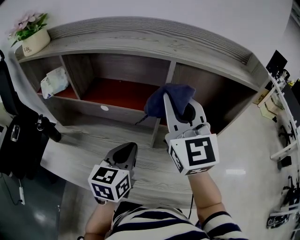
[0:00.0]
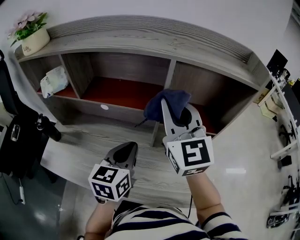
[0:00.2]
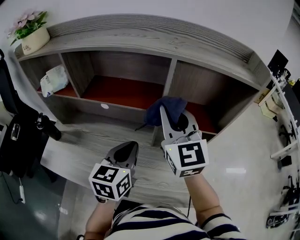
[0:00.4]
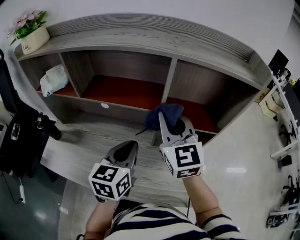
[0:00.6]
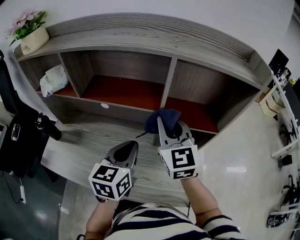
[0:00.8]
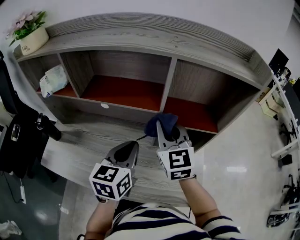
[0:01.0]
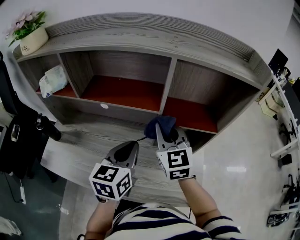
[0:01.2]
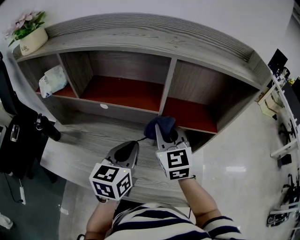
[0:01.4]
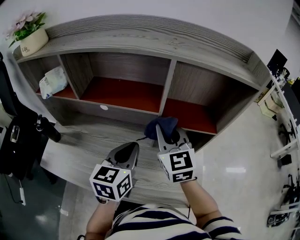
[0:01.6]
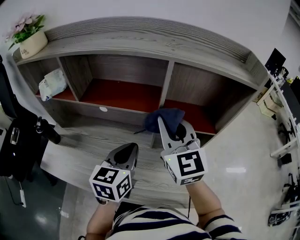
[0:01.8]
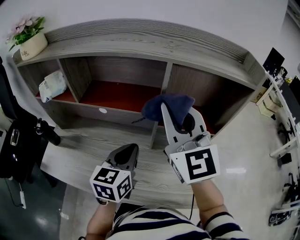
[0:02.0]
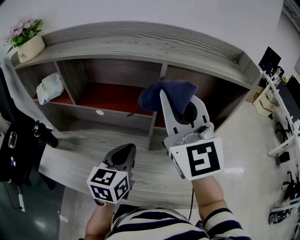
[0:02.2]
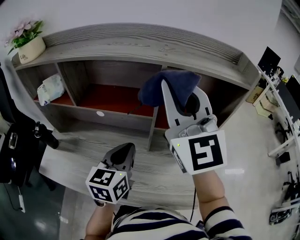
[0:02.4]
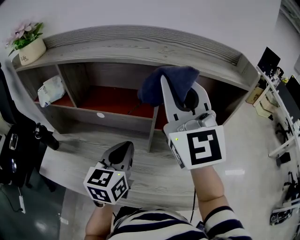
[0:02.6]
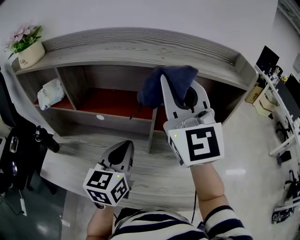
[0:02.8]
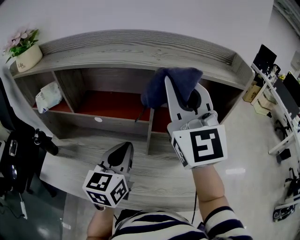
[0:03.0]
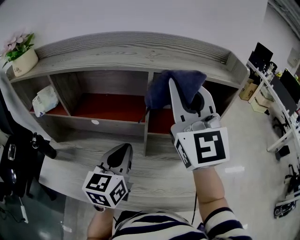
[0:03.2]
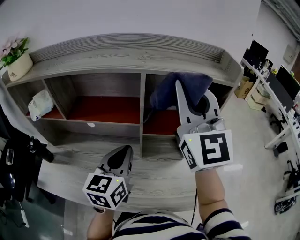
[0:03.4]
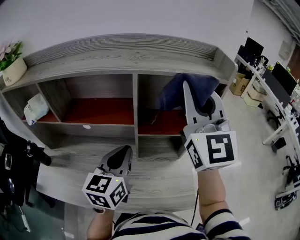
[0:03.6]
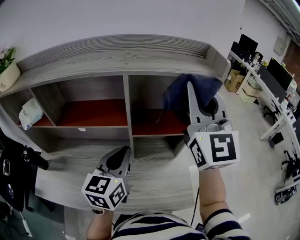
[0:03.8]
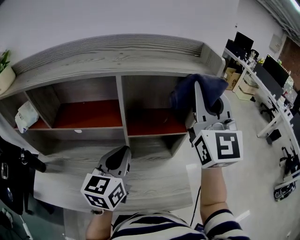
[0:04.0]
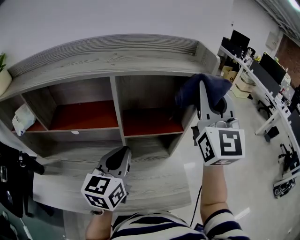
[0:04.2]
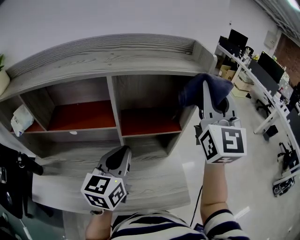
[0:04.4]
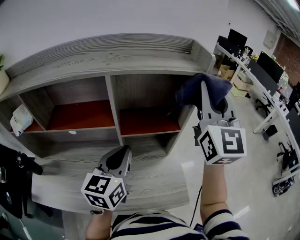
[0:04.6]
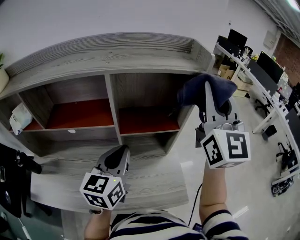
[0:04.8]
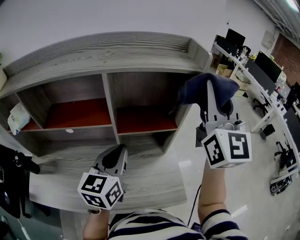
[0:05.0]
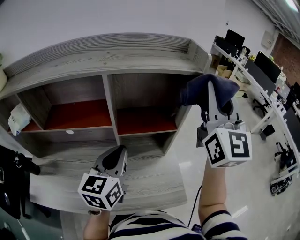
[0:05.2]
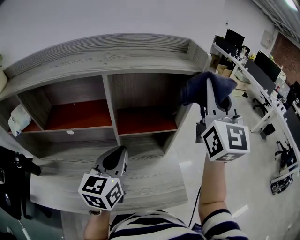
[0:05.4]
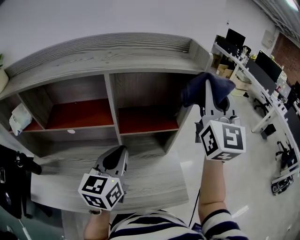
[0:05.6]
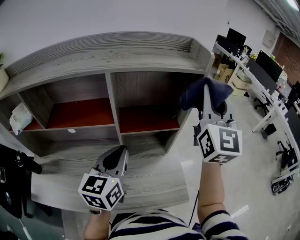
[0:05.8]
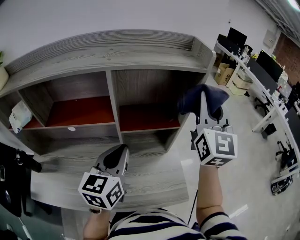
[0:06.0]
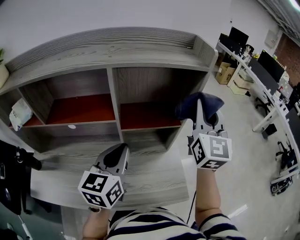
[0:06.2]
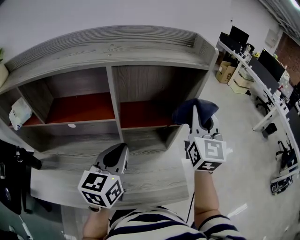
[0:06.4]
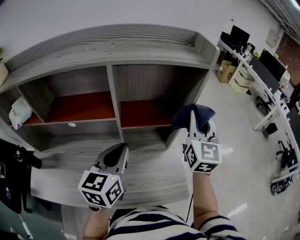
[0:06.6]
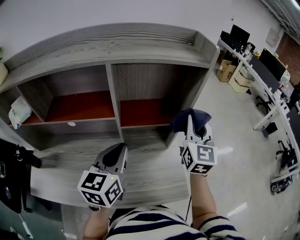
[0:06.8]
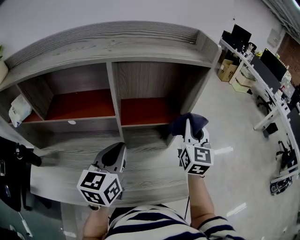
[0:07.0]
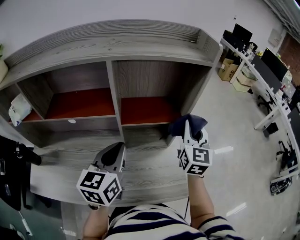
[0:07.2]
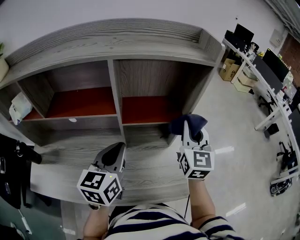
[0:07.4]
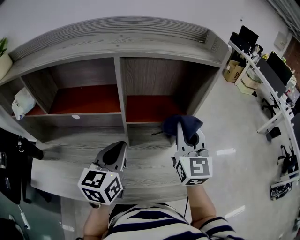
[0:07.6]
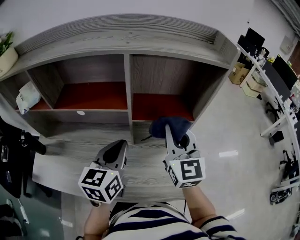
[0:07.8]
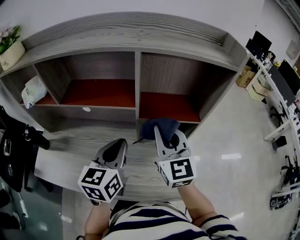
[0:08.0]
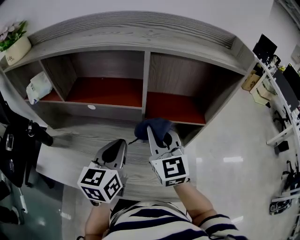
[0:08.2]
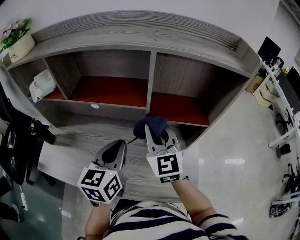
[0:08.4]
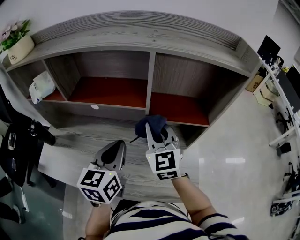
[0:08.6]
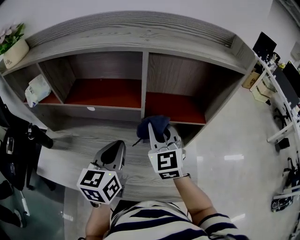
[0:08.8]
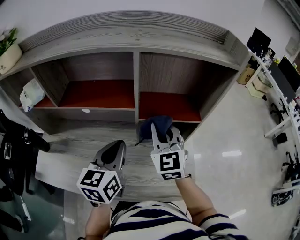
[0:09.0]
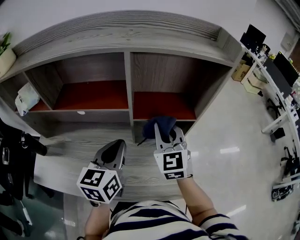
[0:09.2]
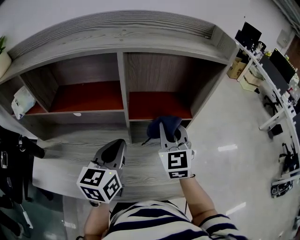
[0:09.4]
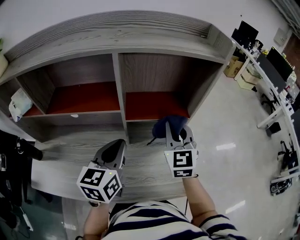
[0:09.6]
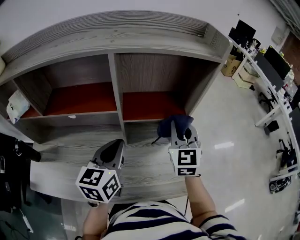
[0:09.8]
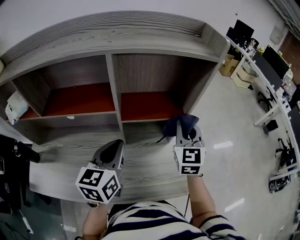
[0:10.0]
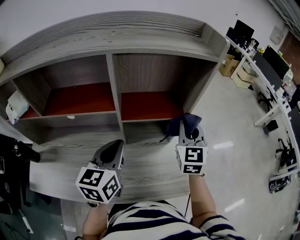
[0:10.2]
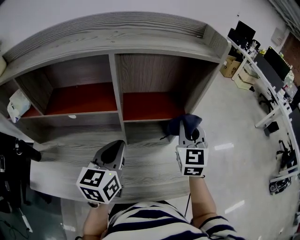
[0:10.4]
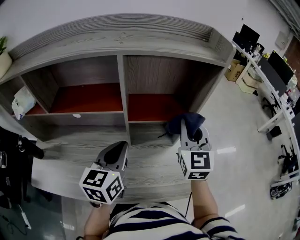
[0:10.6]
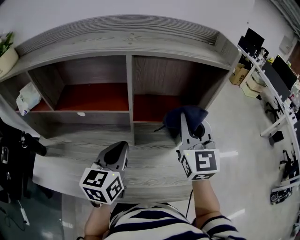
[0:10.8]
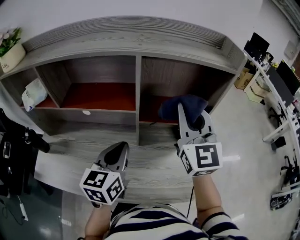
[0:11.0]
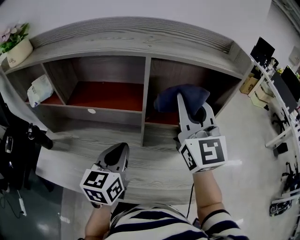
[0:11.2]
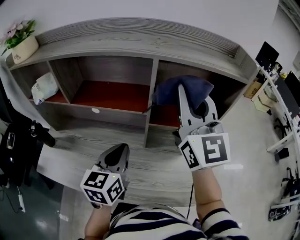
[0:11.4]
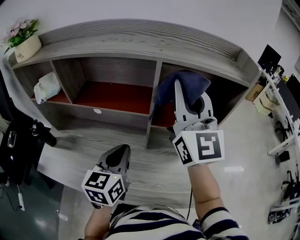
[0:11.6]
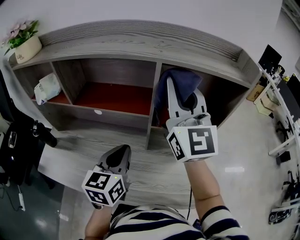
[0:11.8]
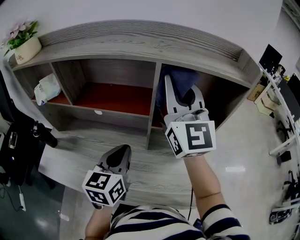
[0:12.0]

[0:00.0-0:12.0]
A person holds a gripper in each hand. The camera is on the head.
0:00.0 to 0:01.6: The right gripper travels downward by about 15 cm.
0:01.6 to 0:03.0: The left gripper shifts approximately 5 cm upward, while the right gripper goes roughly 25 cm upward, and swivels roughly 30 degrees.
0:03.0 to 0:04.4: The right gripper goes some 20 cm to the right, and swivels some 30 degrees. Meanwhile the left gripper travels to the right by some 10 cm.
0:04.4 to 0:06.0: The right gripper heads downward, covering about 5 cm.
0:06.0 to 0:07.6: The right gripper travels downward and to the left by about 15 cm.
0:07.6 to 0:09.0: The right gripper travels to the left and downward by approximately 15 cm.
0:09.0 to 0:10.4: The right gripper travels to the right by approximately 15 cm, and swivels roughly 20 degrees.
0:10.4 to 0:12.0: The right gripper goes approximately 30 cm upward and to the left, and swivels approximately 40 degrees. The left gripper goes approximately 5 cm to the left.

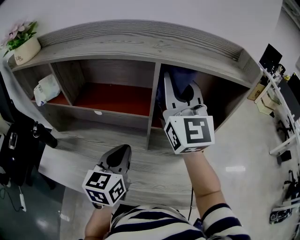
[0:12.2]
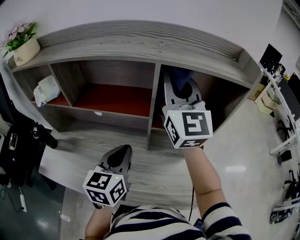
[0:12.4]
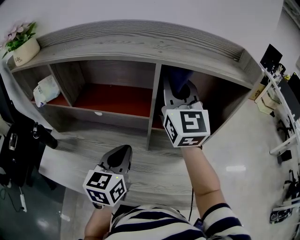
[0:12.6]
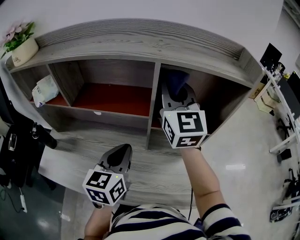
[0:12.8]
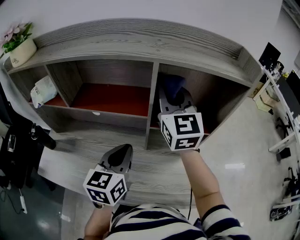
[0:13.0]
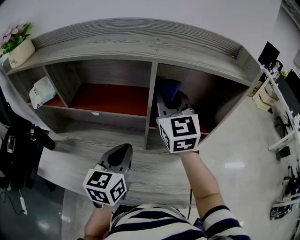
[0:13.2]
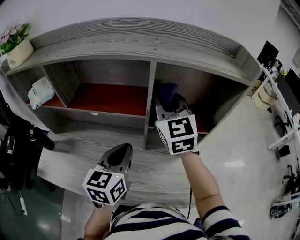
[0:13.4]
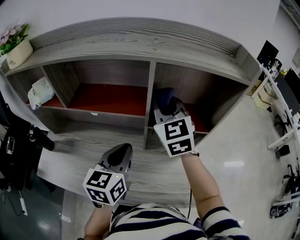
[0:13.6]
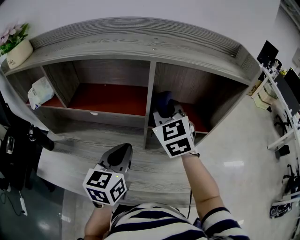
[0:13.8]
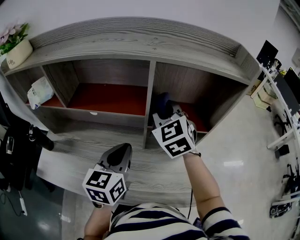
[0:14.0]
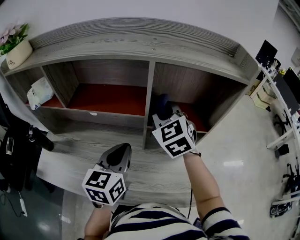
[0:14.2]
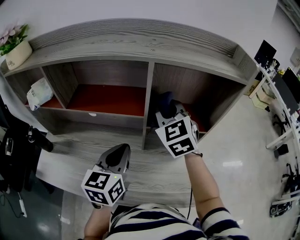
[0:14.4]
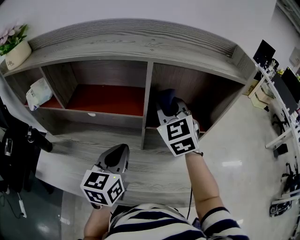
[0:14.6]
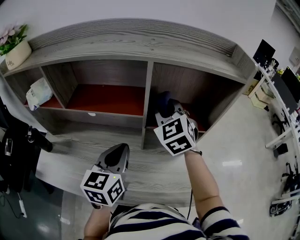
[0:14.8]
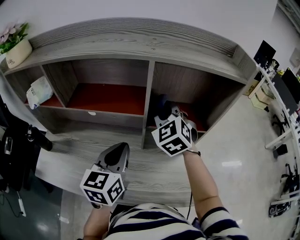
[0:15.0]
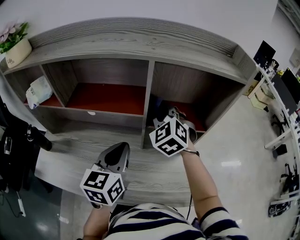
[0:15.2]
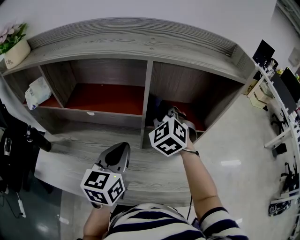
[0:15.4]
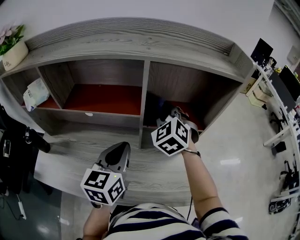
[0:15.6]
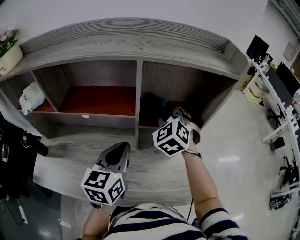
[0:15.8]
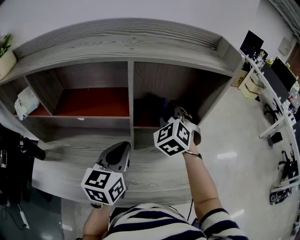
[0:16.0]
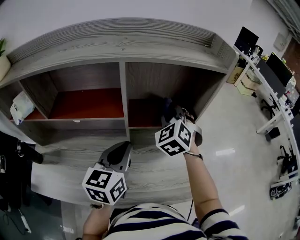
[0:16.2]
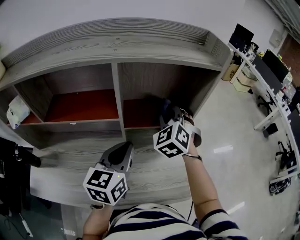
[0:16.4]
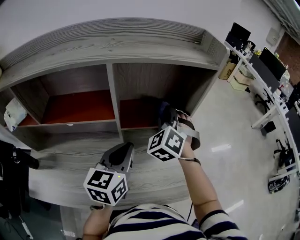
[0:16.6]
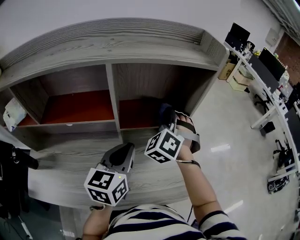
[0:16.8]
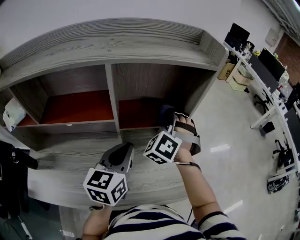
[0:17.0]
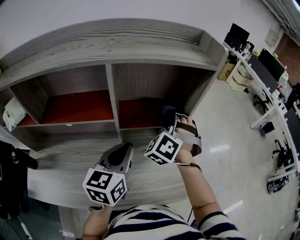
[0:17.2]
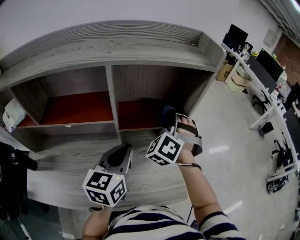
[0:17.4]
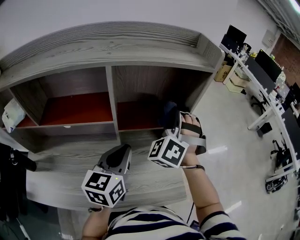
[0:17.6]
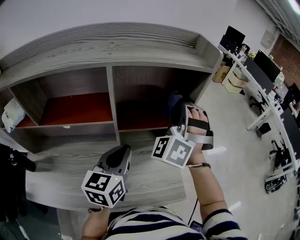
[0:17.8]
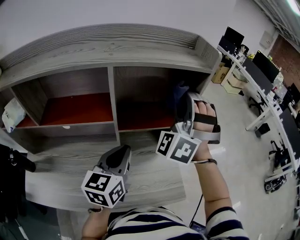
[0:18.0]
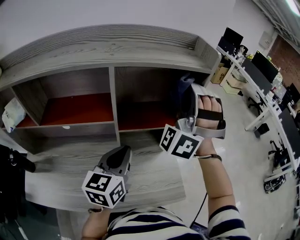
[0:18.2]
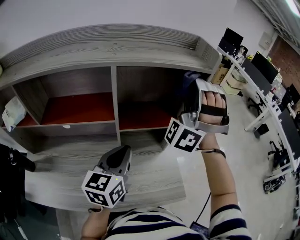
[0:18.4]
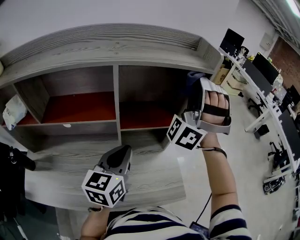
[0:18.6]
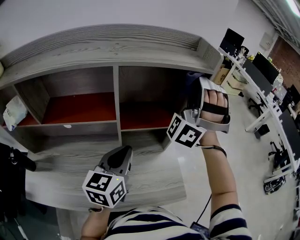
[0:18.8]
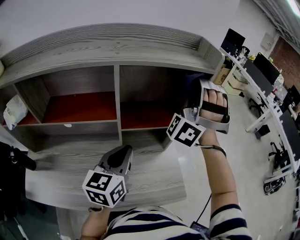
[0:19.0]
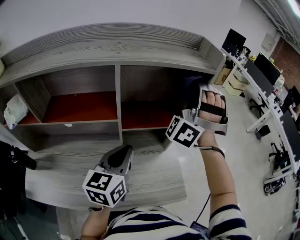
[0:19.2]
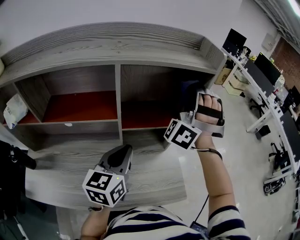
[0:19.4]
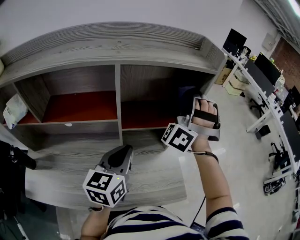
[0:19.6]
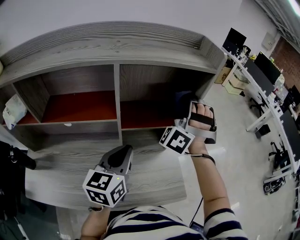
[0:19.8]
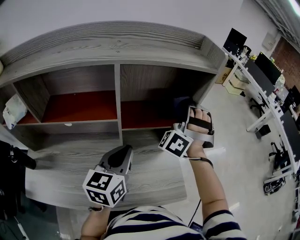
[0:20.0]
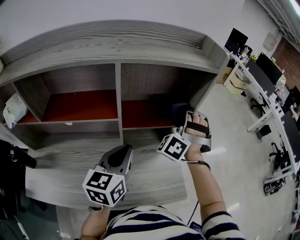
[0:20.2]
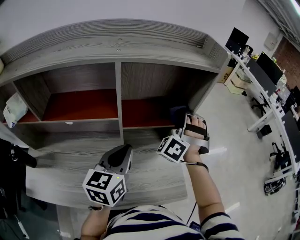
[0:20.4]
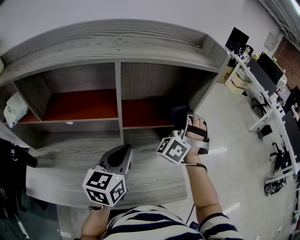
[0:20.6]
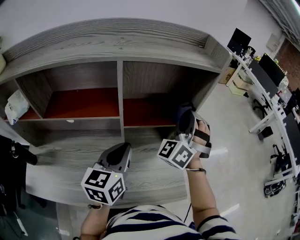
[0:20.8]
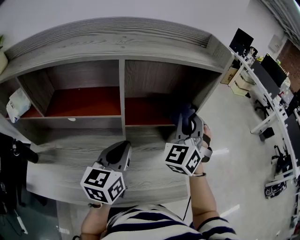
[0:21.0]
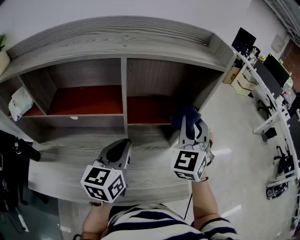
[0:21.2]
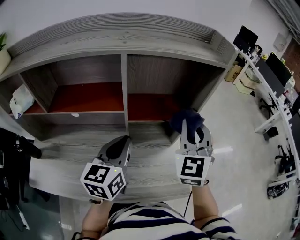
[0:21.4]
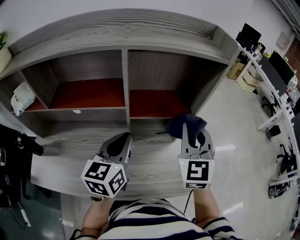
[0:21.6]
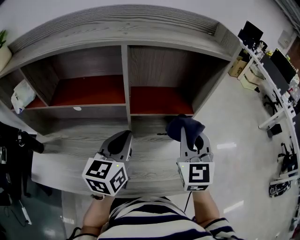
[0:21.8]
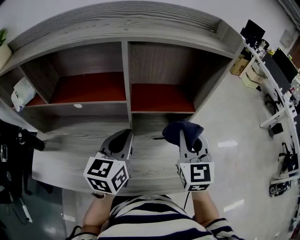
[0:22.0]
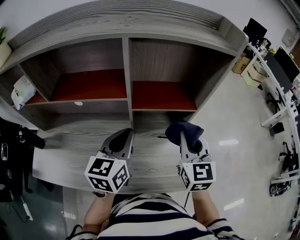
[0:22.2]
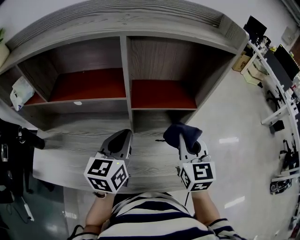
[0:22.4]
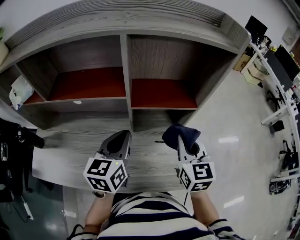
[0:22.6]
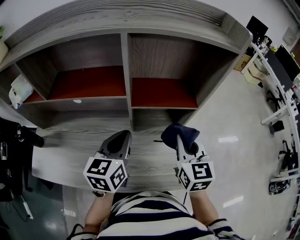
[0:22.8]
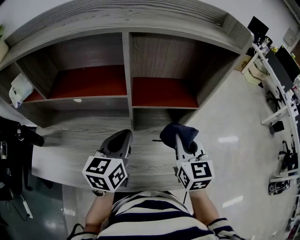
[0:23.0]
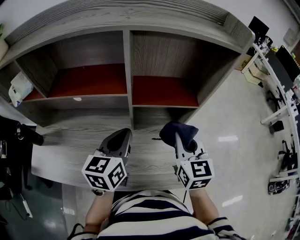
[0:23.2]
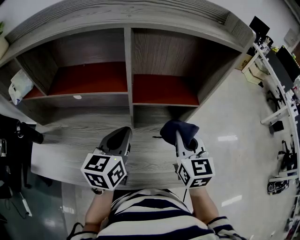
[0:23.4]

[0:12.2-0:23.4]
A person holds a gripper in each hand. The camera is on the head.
0:12.2 to 0:13.8: The right gripper heads downward, covering about 15 cm, and points its fingers roughly 40 degrees further downward.
0:13.8 to 0:15.4: The right gripper is displaced downward by some 5 cm, and rotates approximately 20 degrees.
0:15.4 to 0:17.0: The right gripper shifts by about 15 cm, and turns by some 40 degrees, while the left gripper moves approximately 10 cm.
0:17.0 to 0:18.6: The right gripper travels upward by about 20 cm, and tilts its fingers about 50 degrees upward.
0:18.6 to 0:20.2: The right gripper heads downward, covering approximately 15 cm, and turns by about 30 degrees.
0:20.2 to 0:21.8: The right gripper goes approximately 10 cm backward, and twists roughly 70 degrees clockwise, seen from behind.
0:21.8 to 0:23.4: The right gripper is displaced downward by roughly 5 cm, and turns by about 20 degrees.

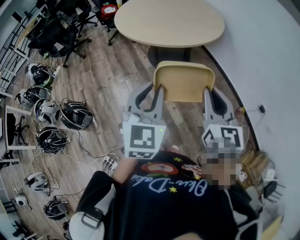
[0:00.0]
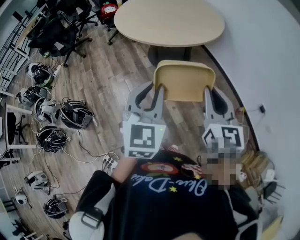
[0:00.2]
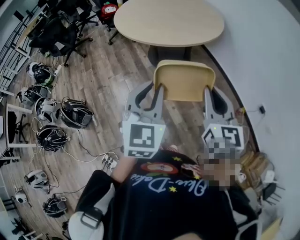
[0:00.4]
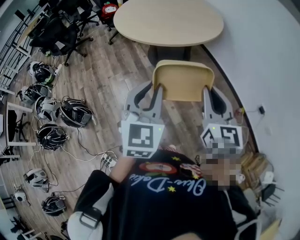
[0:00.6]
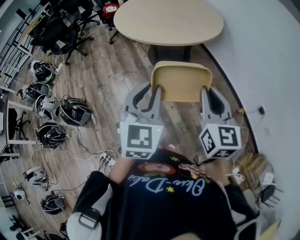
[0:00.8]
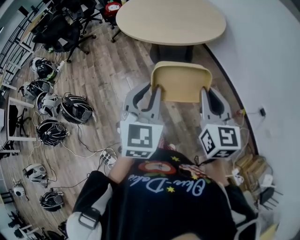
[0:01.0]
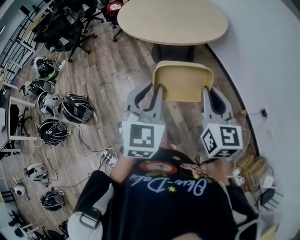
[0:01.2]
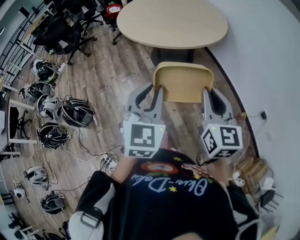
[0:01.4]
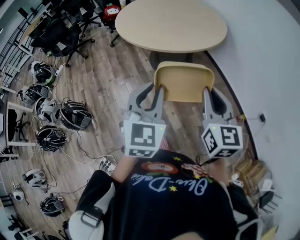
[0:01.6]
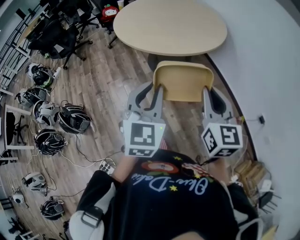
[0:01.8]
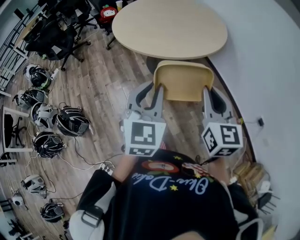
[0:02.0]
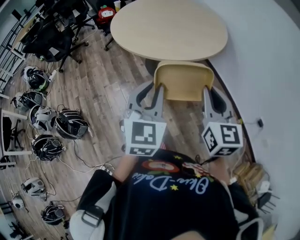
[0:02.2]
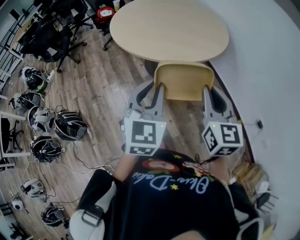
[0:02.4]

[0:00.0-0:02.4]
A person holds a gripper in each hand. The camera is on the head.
0:00.0 to 0:01.2: There are only small adjustments of the grippers.
0:01.2 to 0:02.4: Both grippers move forward, about 15 cm.
